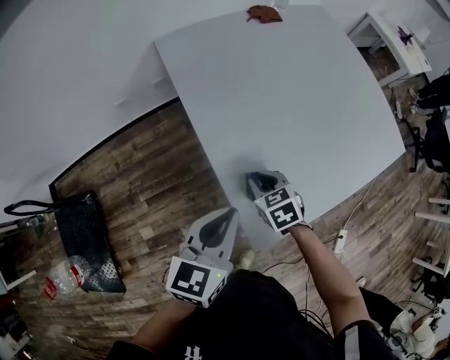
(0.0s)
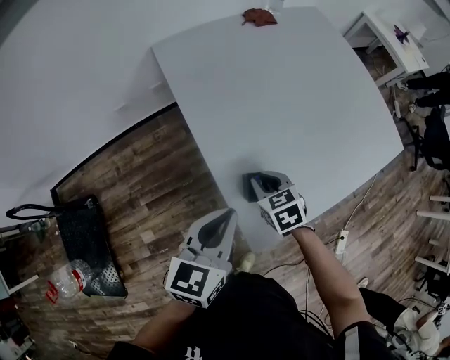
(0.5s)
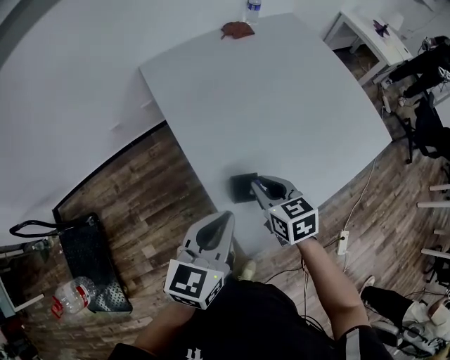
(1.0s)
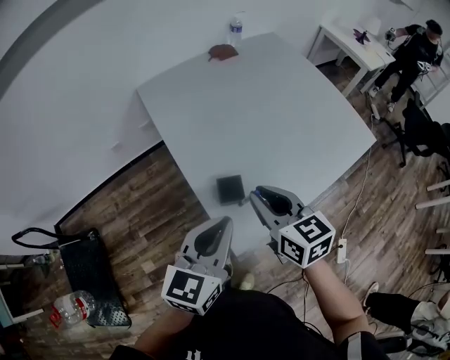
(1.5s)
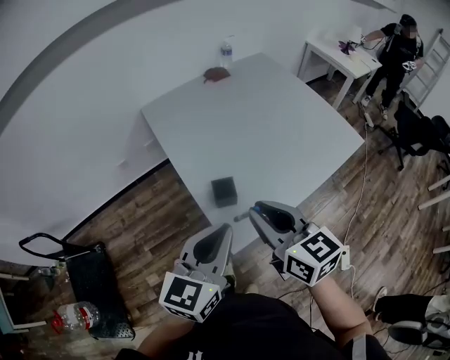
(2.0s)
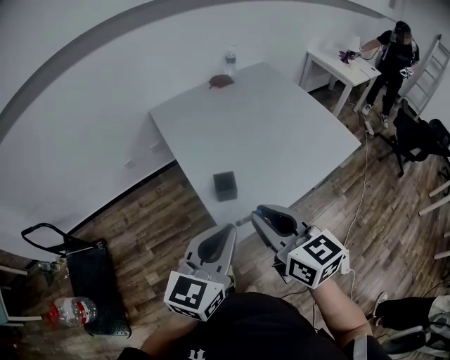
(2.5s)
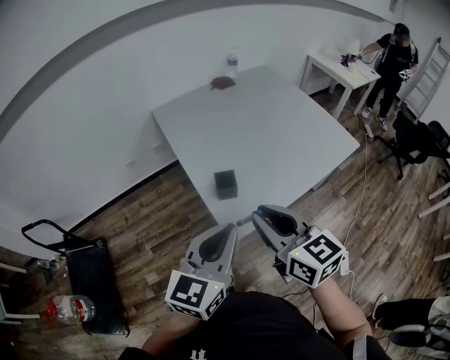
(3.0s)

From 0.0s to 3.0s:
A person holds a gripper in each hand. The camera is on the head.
From 0.0s to 1.5s: The left gripper is displaced upward, to the right and backward by some 10 cm, while the right gripper goes roughly 20 cm upward, and tips its fingers upward by about 30 degrees.
From 1.5s to 3.0s: The two grippers go approximately 15 cm backward and upward.

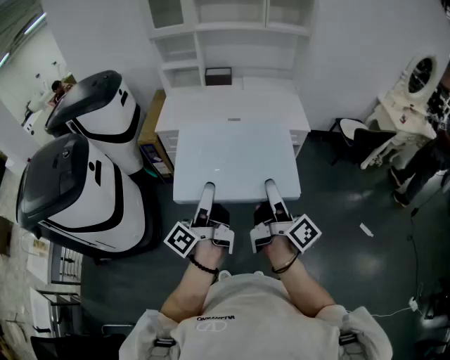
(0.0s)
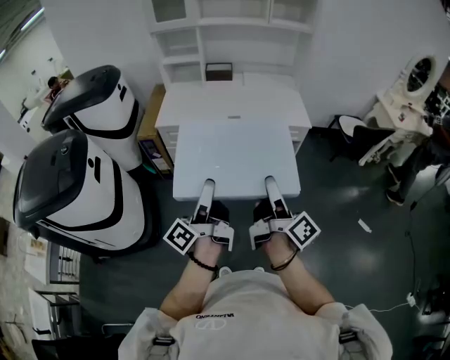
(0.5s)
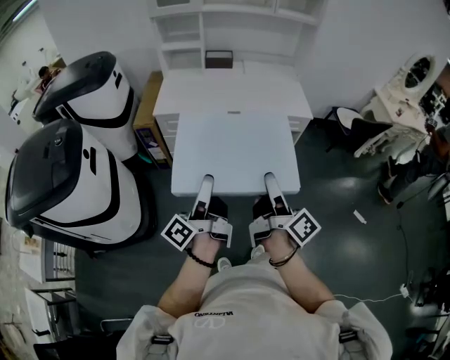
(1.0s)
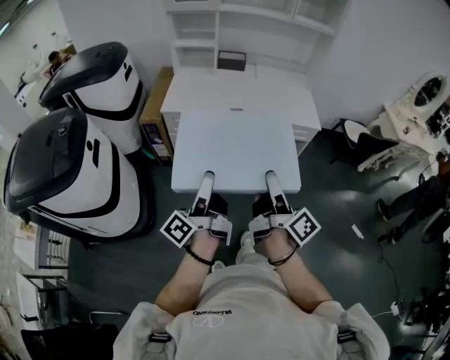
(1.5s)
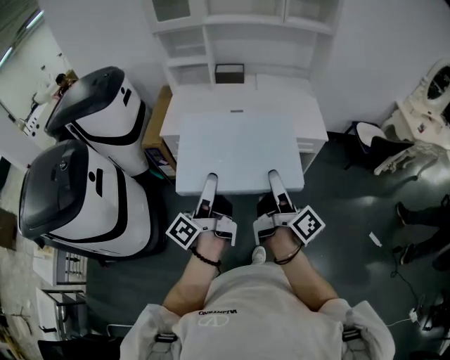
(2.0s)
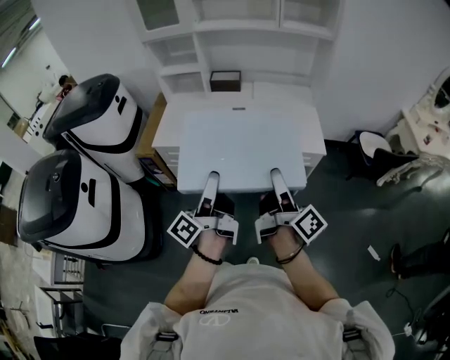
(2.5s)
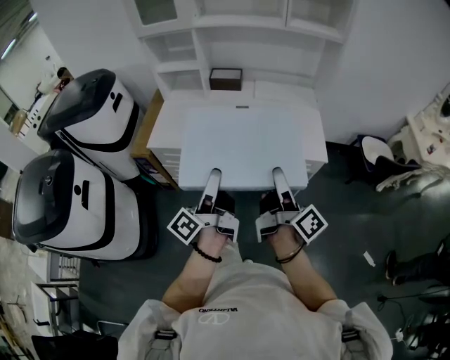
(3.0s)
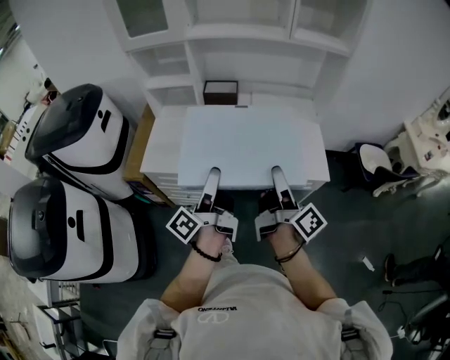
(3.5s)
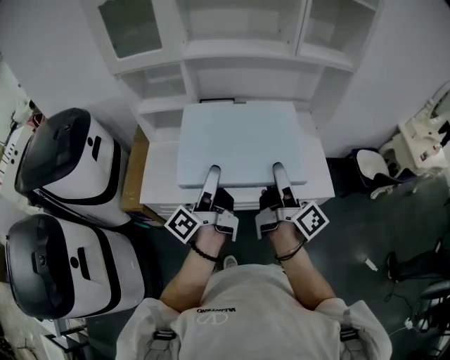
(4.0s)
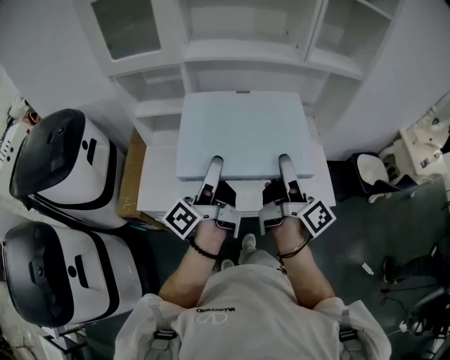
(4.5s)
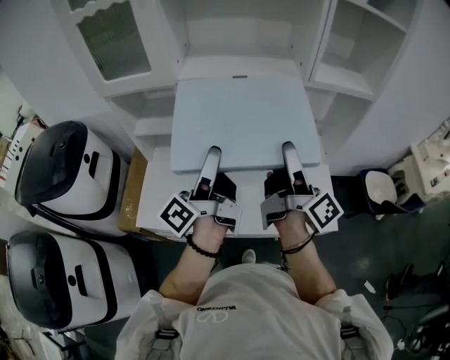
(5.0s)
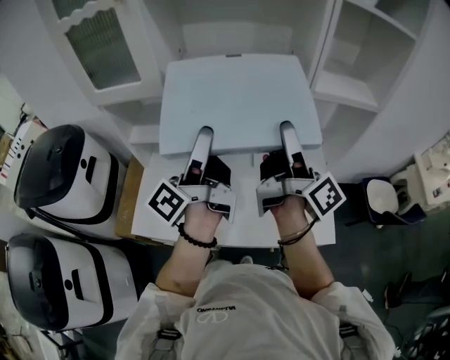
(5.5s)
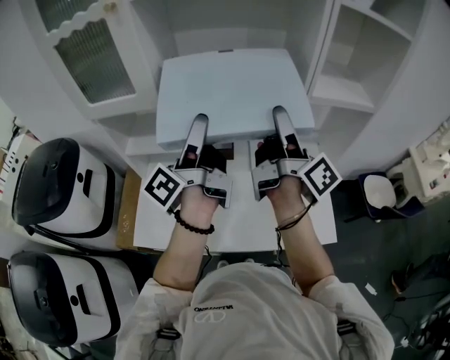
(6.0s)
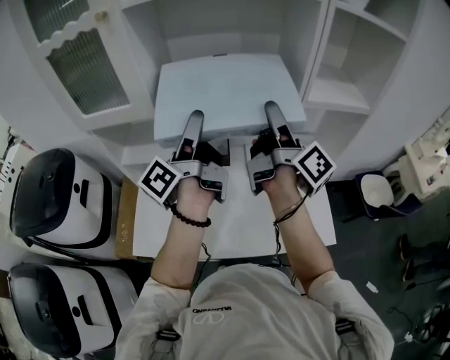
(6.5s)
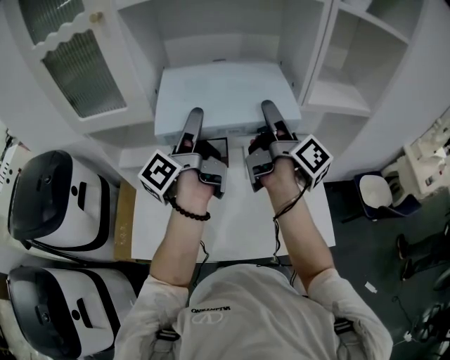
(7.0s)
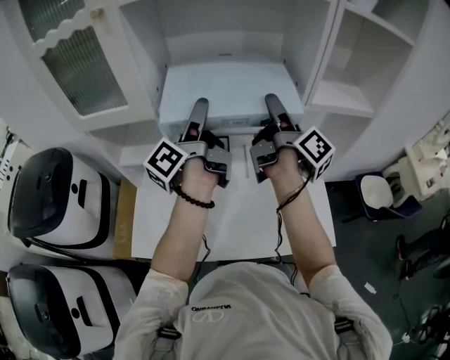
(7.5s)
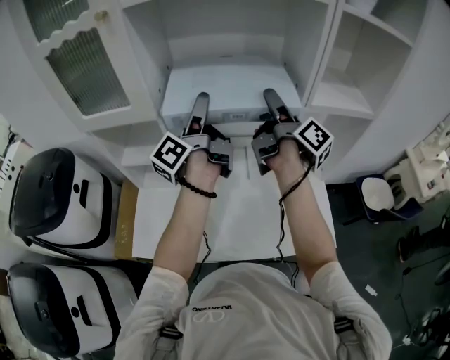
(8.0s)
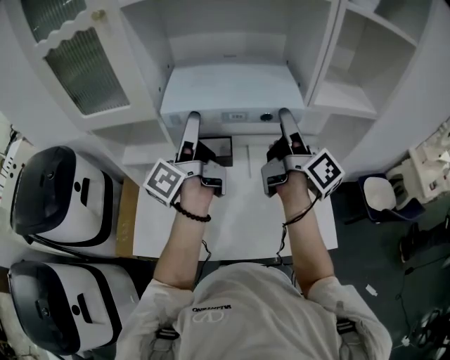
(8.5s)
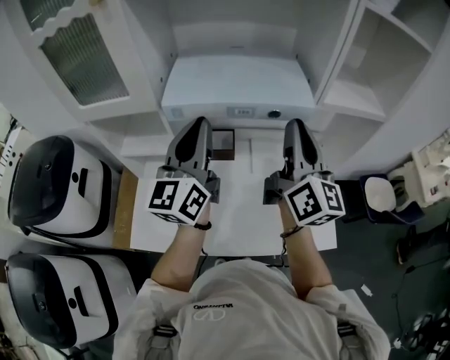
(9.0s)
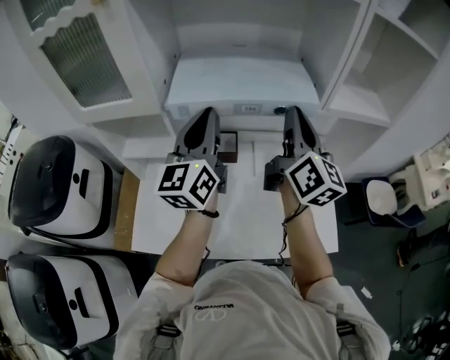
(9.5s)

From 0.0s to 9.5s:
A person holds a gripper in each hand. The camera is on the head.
From 0.0s to 2.0s: The grippers both shift forward by roughly 15 cm.
From 2.0s to 4.0s: The grippers both shift forward by approximately 40 cm.
From 4.0s to 5.5s: Both grippers move forward and upward, some 25 cm.
From 5.5s to 7.5s: The two grippers go roughly 15 cm forward.
From 7.5s to 9.5s: The left gripper goes backward and returns, some 5 cm each way, rotates around the line of its fingers by about 60 degrees, clockwise from behind, and closes its fingers. Meanwhile the right gripper travels backward and back again, approximately 10 cm each way, twists about 50 degrees counterclockwise, seen from behind, and closes up.

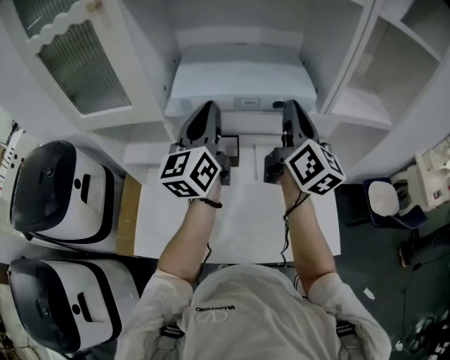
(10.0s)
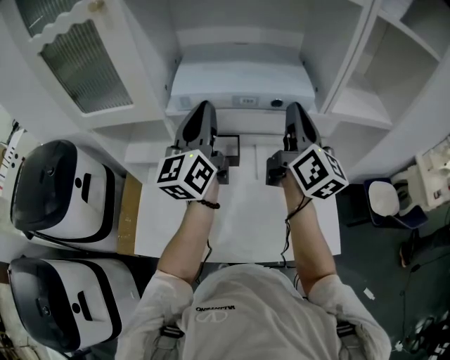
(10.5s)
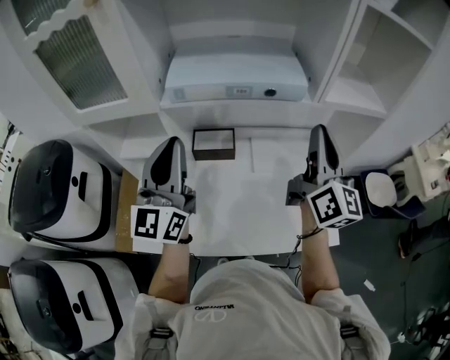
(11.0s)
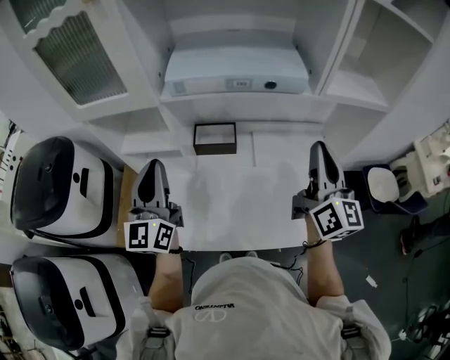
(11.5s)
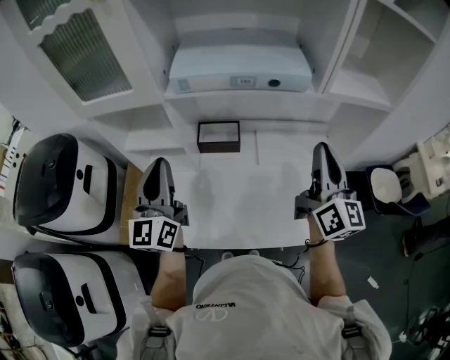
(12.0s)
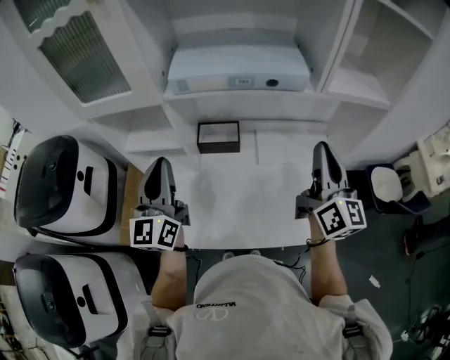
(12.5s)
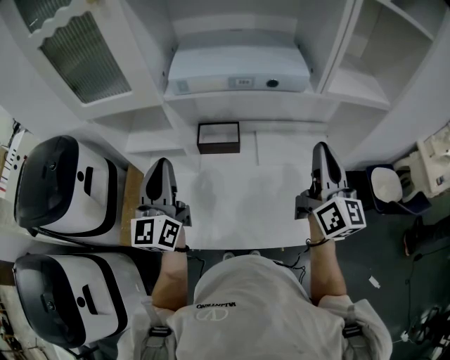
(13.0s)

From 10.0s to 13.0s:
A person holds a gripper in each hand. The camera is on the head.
From 10.0s to 11.5s: The right gripper shifts approximately 15 cm backward, to the right and downward; the left gripper shifts about 20 cm backward, to the left and downward.
From 11.5s to 13.0s: Both grippers stay about where they are.

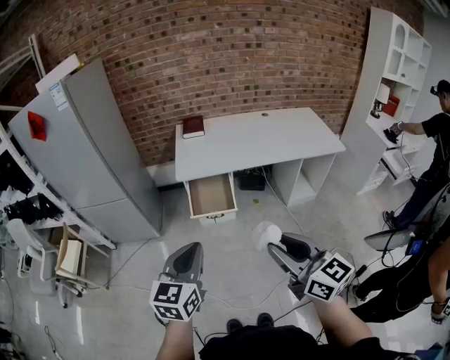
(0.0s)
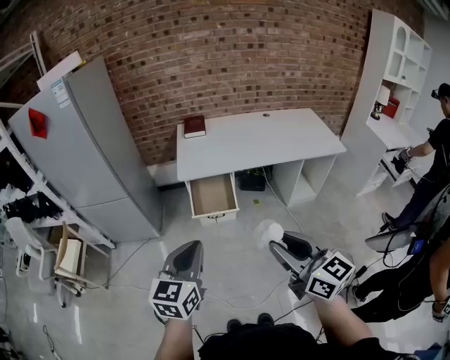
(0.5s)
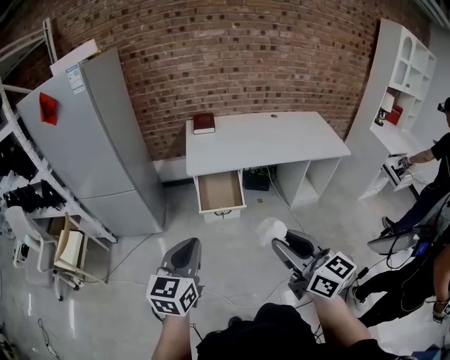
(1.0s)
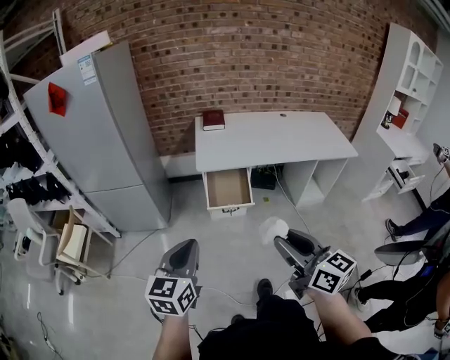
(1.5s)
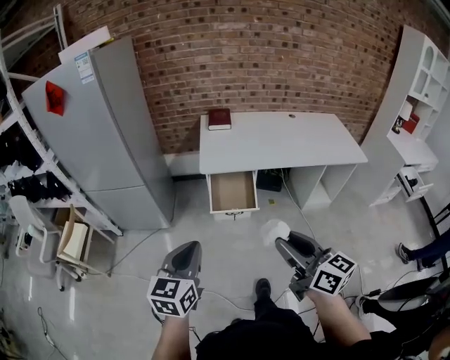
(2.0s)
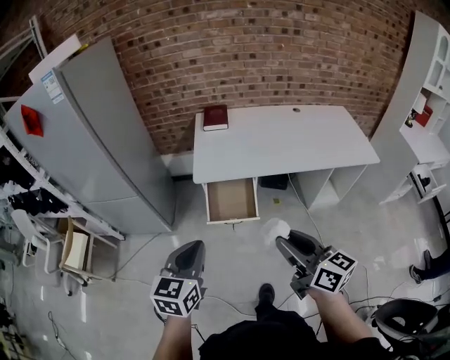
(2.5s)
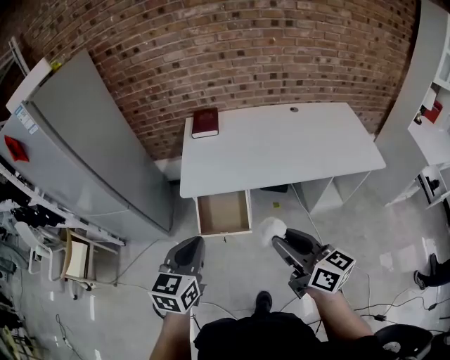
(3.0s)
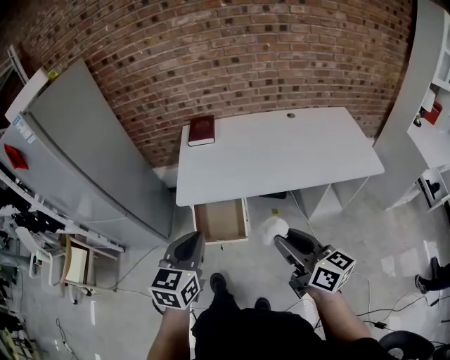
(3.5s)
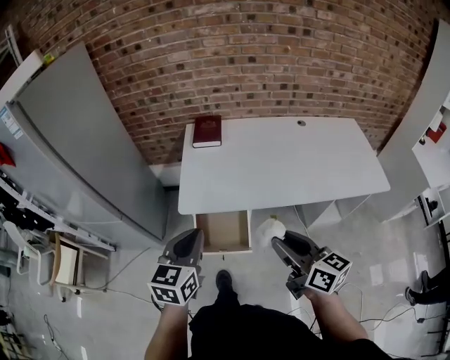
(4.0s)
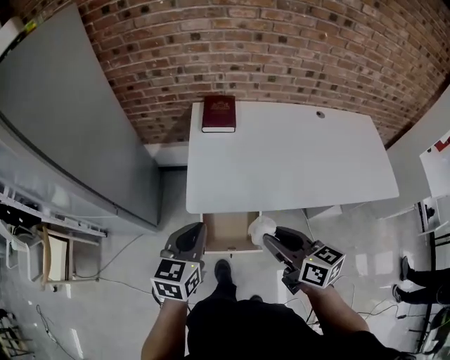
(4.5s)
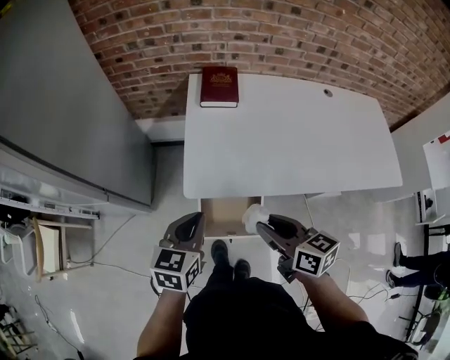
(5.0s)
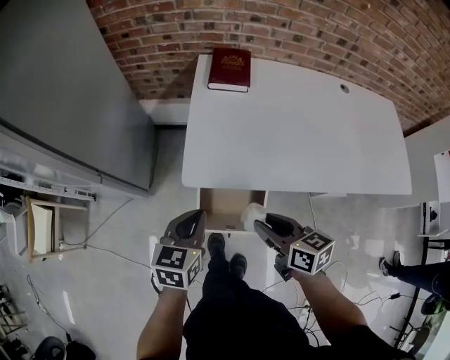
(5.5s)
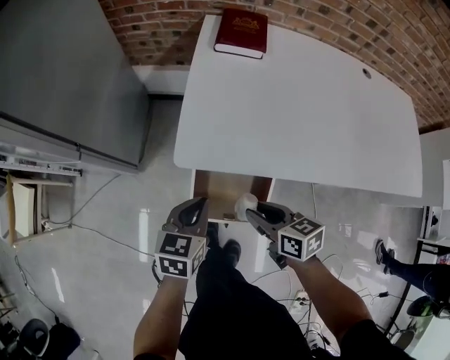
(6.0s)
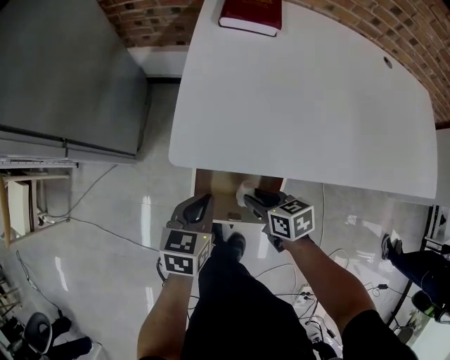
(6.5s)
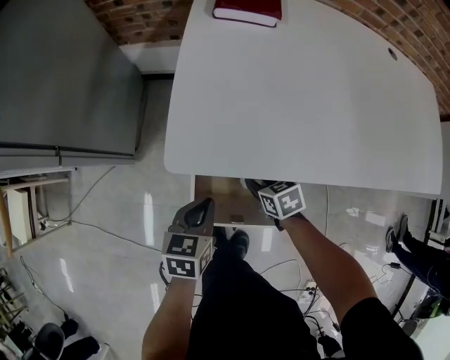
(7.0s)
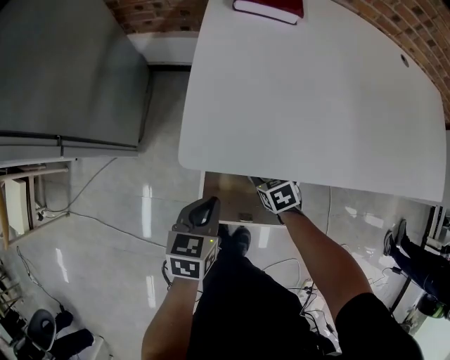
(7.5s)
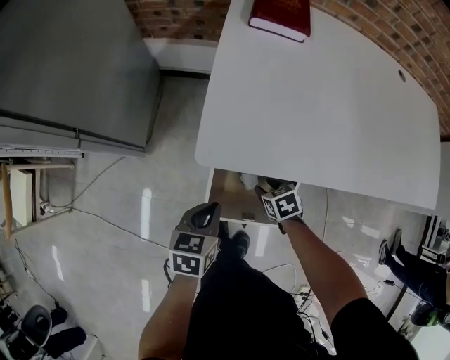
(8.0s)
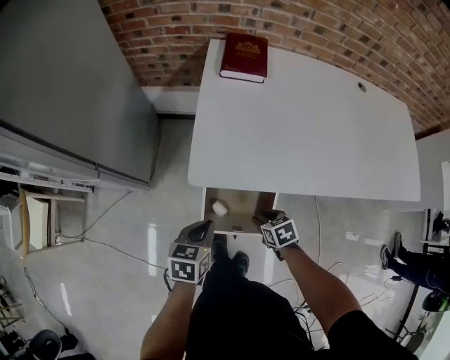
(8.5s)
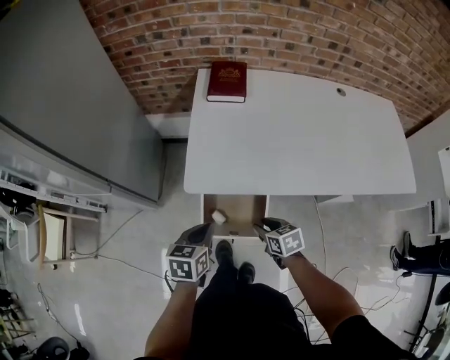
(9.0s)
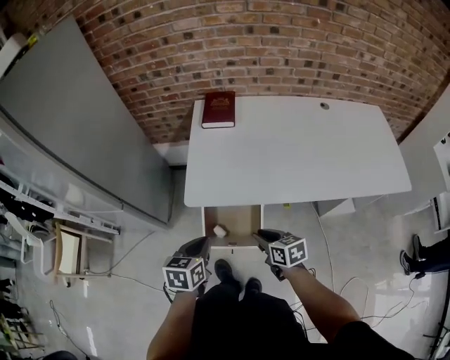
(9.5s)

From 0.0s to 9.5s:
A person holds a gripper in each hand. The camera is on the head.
From 0.0s to 2.0s: The right gripper goes approximately 10 cm to the left and forward. Meanwhile the left gripper goes approximately 10 cm to the left.
From 2.0s to 4.0s: Both grippers move forward and to the right, approximately 35 cm.
From 4.0s to 5.5s: The left gripper goes roughly 20 cm downward and forward. Meanwhile the right gripper is displaced downward, forward and to the left by roughly 25 cm, and rotates approximately 30 degrees.
From 5.5s to 7.5s: The left gripper heads downward, covering about 25 cm. The right gripper moves downward, roughly 35 cm, and angles its fingers downward, by approximately 40 degrees.
From 7.5s to 9.5s: The left gripper heads upward, covering some 25 cm, while the right gripper travels upward and backward by about 35 cm, and turns by roughly 30 degrees.

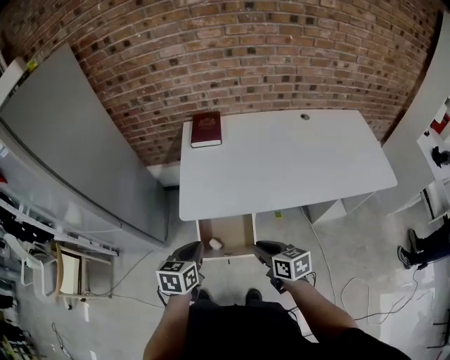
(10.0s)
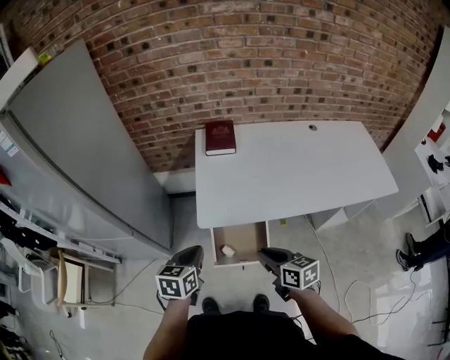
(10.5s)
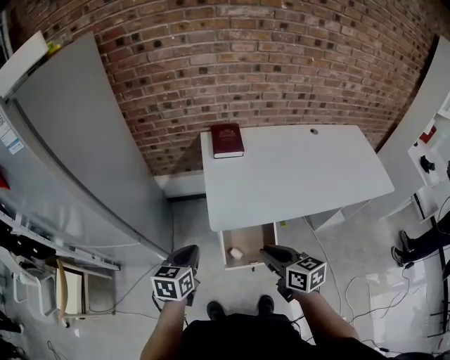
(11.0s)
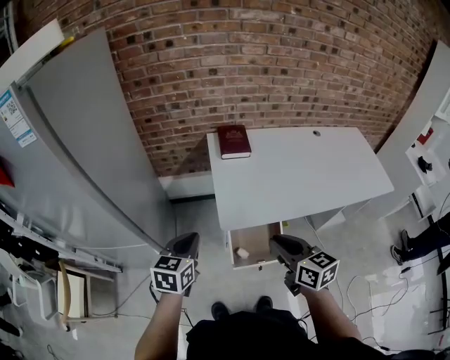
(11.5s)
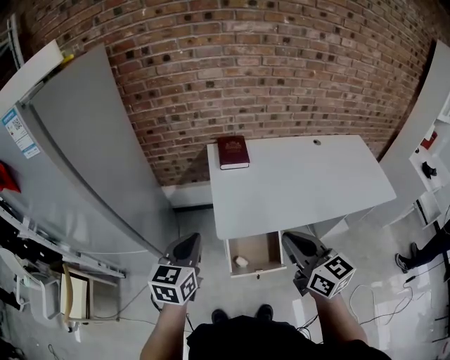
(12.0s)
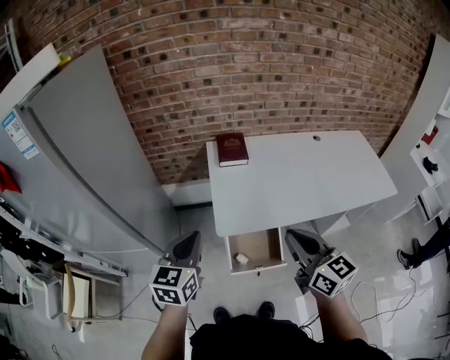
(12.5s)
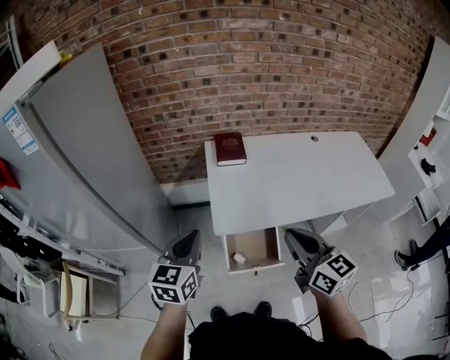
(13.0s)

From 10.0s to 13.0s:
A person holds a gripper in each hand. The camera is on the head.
From 10.0s to 11.5s: The left gripper is displaced to the left by some 20 cm. The right gripper moves to the left and upward, some 25 cm.
From 11.5s to 13.0s: The right gripper moves upward and to the right, some 10 cm; the left gripper moves upward, about 10 cm.
